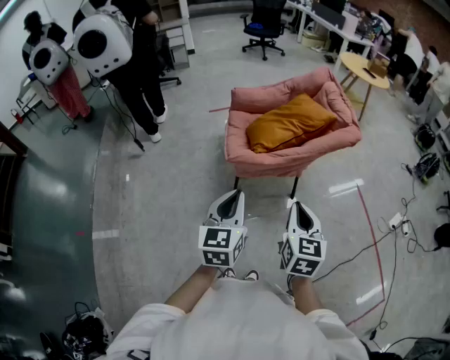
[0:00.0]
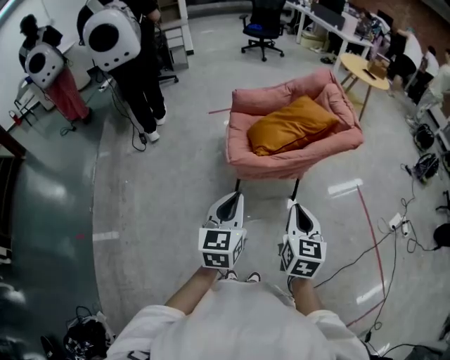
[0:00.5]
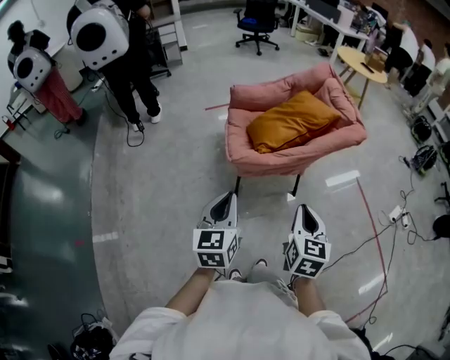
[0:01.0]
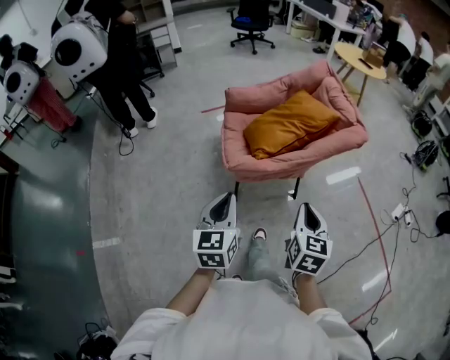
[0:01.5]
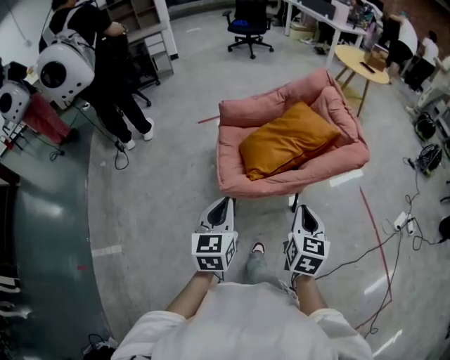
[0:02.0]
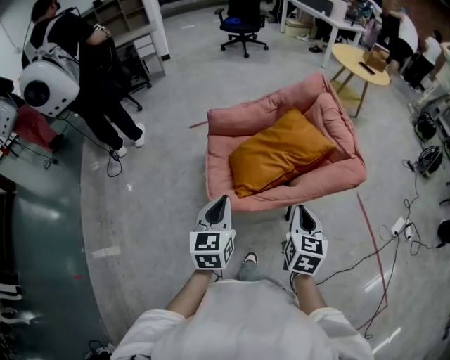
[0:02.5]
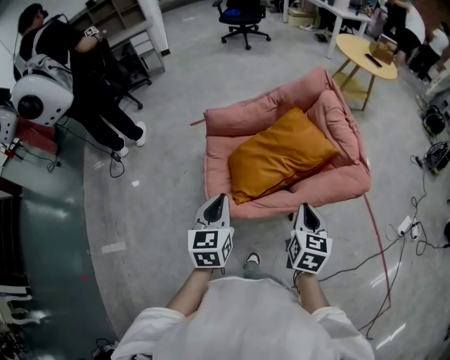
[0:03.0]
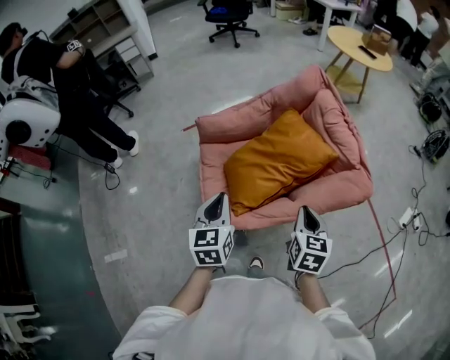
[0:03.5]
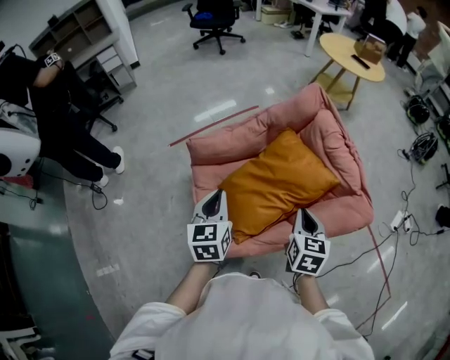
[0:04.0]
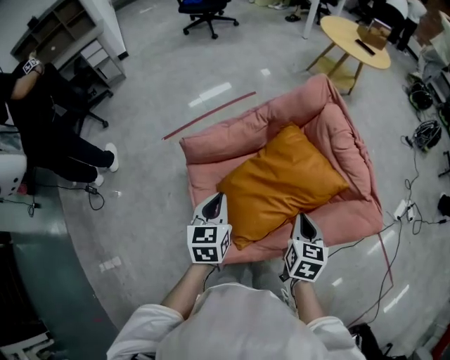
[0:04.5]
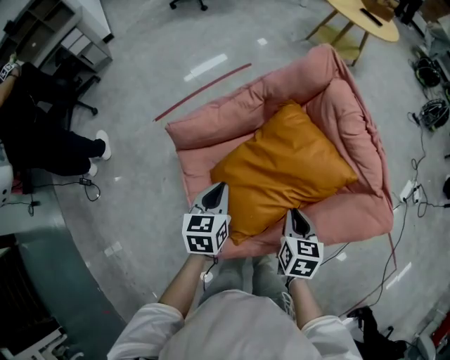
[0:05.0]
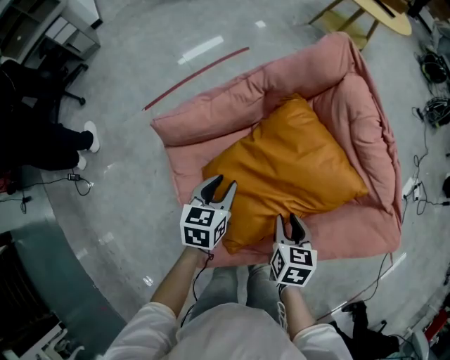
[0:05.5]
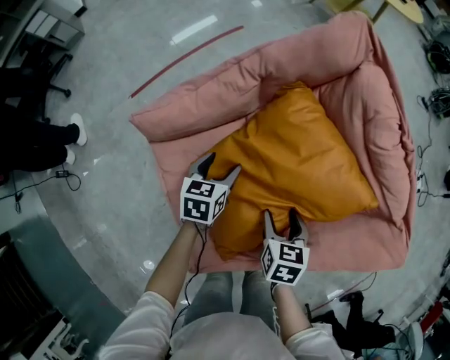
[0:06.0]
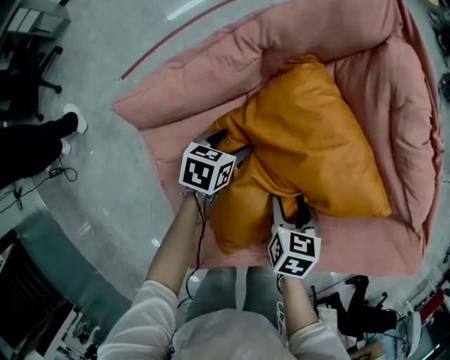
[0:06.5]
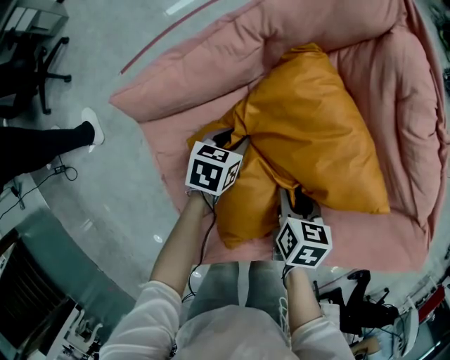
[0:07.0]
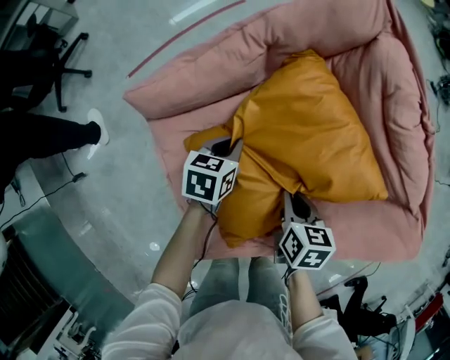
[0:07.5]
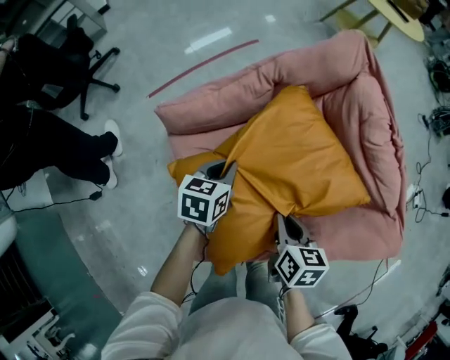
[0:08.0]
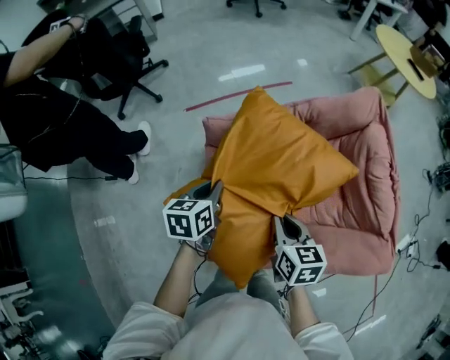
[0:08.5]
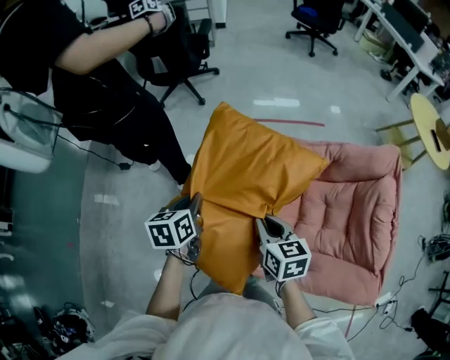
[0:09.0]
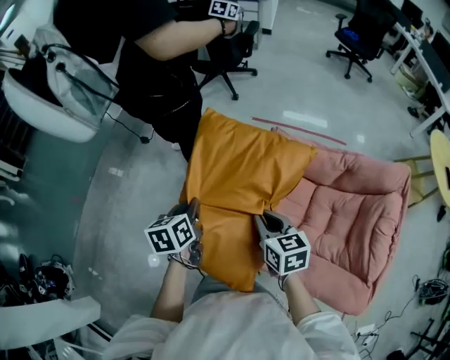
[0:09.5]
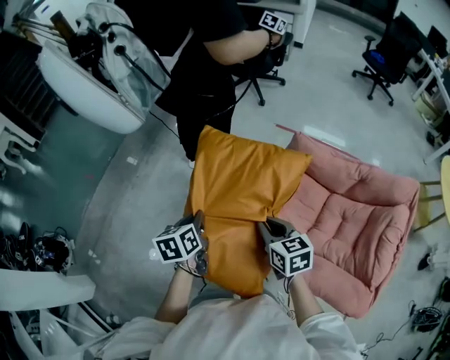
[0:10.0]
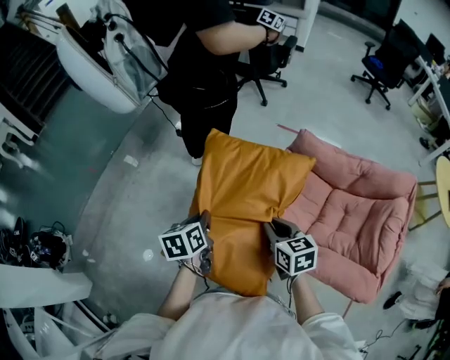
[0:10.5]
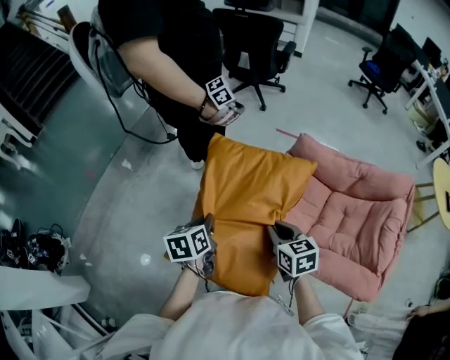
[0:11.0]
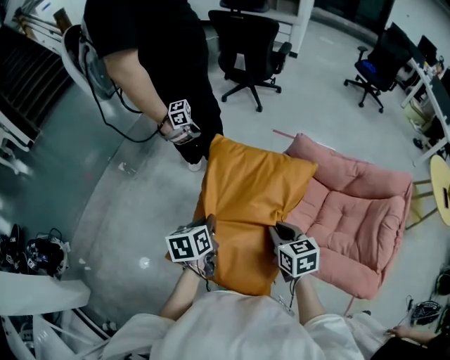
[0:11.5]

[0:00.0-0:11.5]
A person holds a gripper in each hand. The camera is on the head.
0:00.0 to 0:02.0: The two grippers go roughly 20 cm forward.
0:02.0 to 0:04.0: The two grippers go some 35 cm forward.
0:04.0 to 0:06.0: The left gripper heads downward and forward, covering roughly 35 cm, turns by roughly 40 degrees, and opens, while the right gripper shifts some 25 cm downward, turns by about 30 degrees, and opens up.
0:06.0 to 0:07.5: The right gripper closes up; the left gripper closes up.
0:07.5 to 0:09.5: The left gripper changes place by approximately 50 cm, and swivels some 80 degrees; the right gripper changes place by roughly 35 cm, and turns by some 70 degrees.
0:09.5 to 0:11.5: Both grippers travel together backward and to the left, some 15 cm.

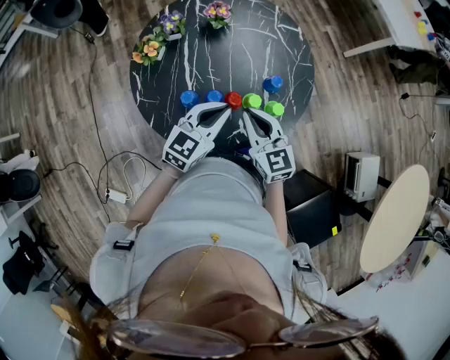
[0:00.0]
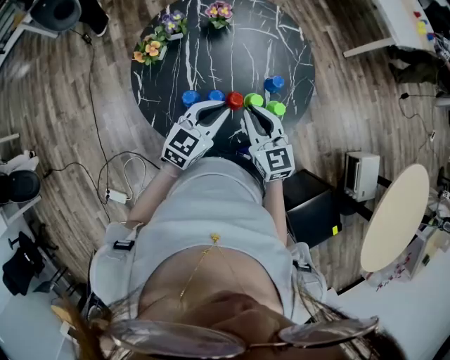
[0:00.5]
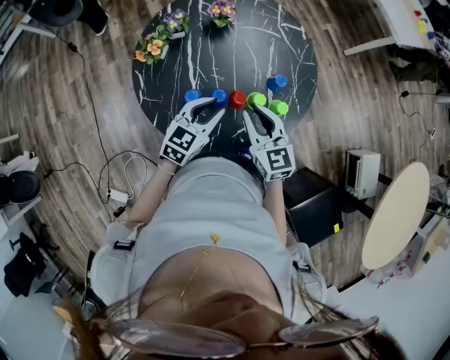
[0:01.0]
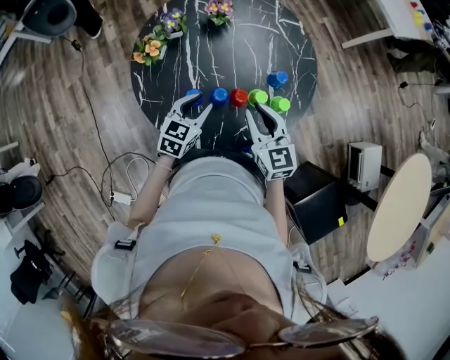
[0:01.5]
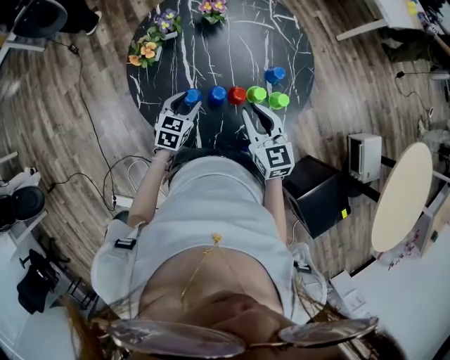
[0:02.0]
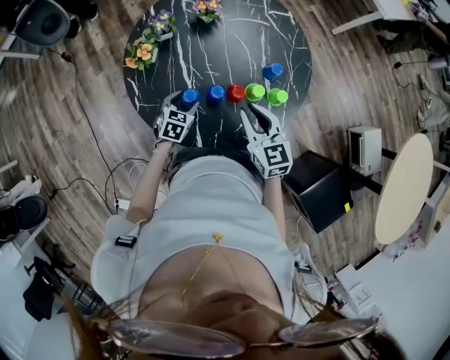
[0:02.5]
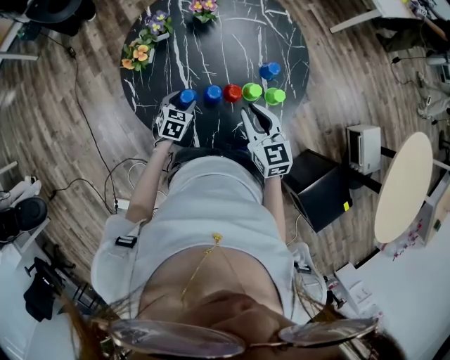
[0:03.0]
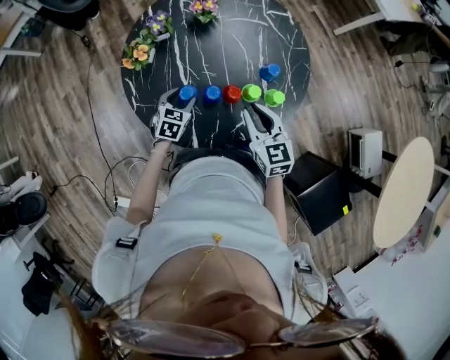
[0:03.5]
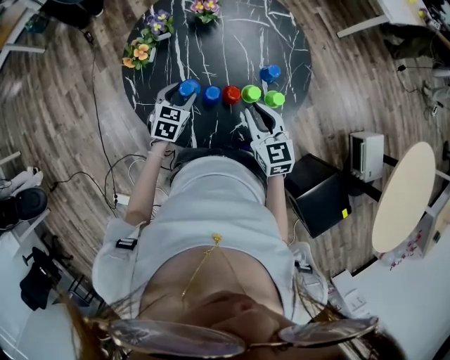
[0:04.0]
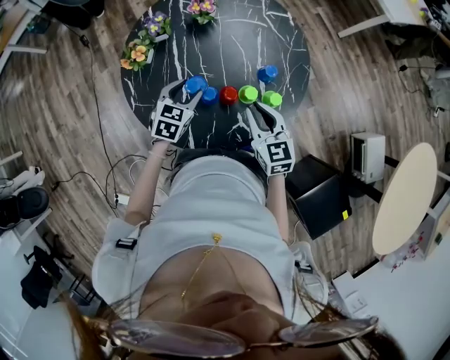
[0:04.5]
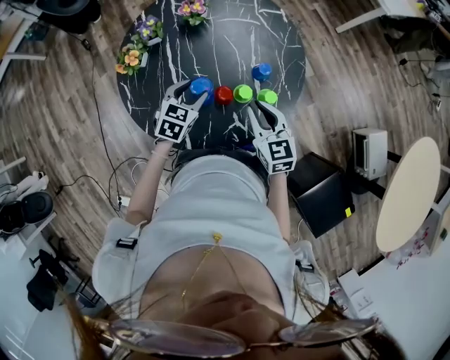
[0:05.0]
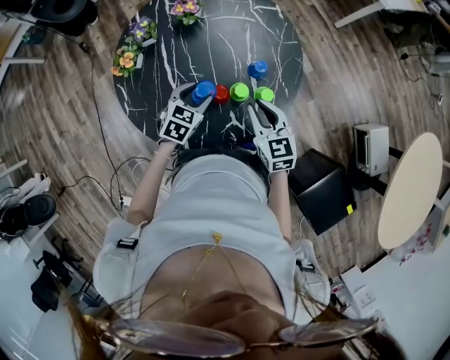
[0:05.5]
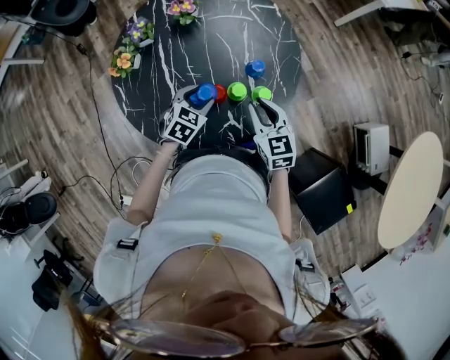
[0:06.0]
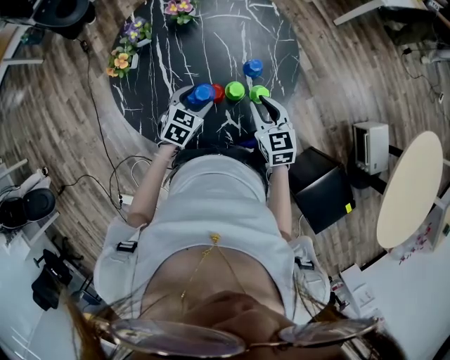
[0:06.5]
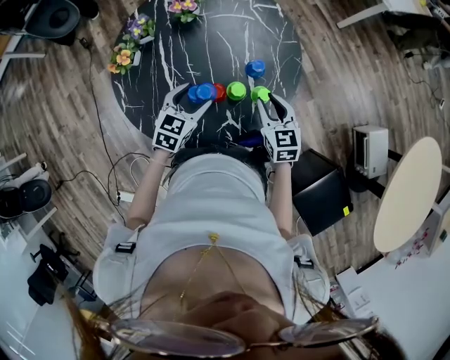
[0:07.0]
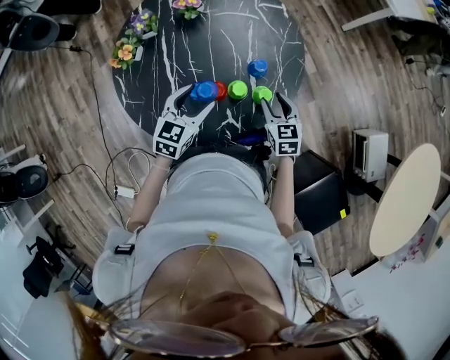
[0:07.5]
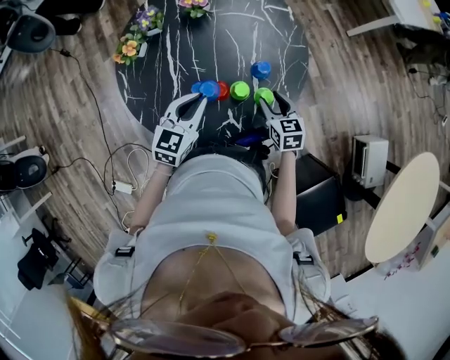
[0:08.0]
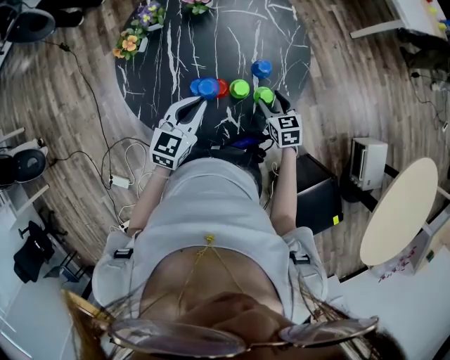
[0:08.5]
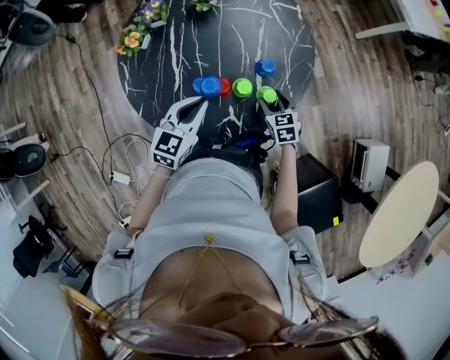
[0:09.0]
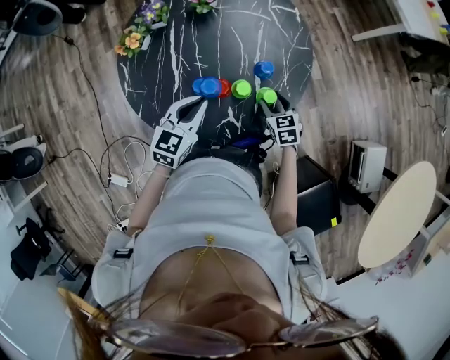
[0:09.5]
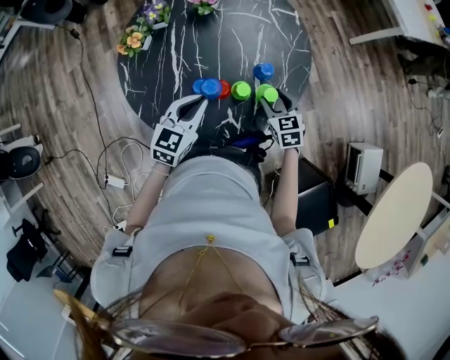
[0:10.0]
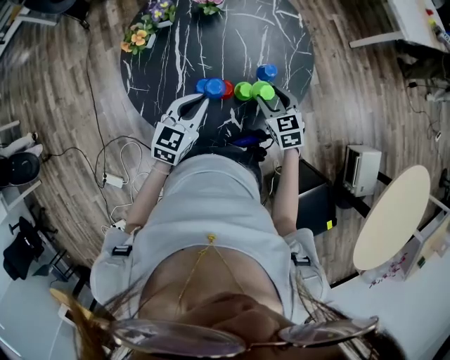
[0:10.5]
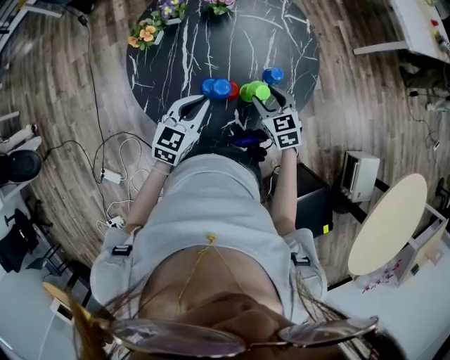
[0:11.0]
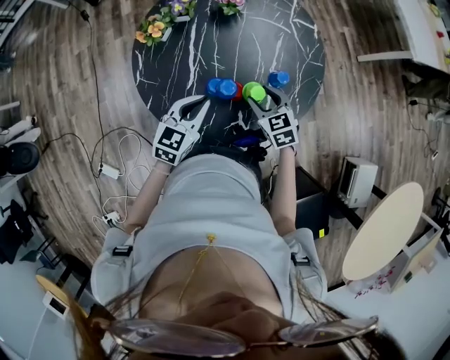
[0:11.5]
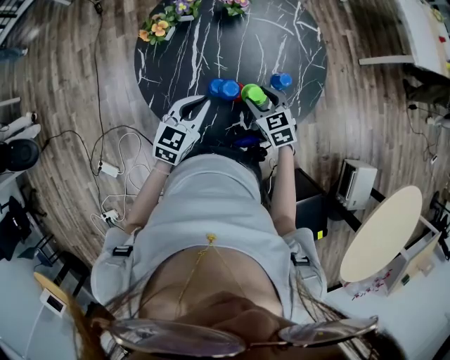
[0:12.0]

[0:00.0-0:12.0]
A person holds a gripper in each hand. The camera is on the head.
0:00.0 to 0:02.0: The left gripper is displaced downward and to the left by some 20 cm, changes its angle by approximately 20 degrees, and opens up.
0:04.0 to 0:06.0: The left gripper heads to the right, covering some 10 cm, while the right gripper heads to the right, covering roughly 5 cm.
0:06.0 to 0:08.0: The left gripper moves upward, approximately 10 cm, rotates about 30 degrees, and closes; the right gripper is displaced downward by about 10 cm, and opens up.
0:10.0 to 0:12.0: The left gripper goes some 5 cm to the left. Meanwhile the right gripper travels to the left by approximately 10 cm.

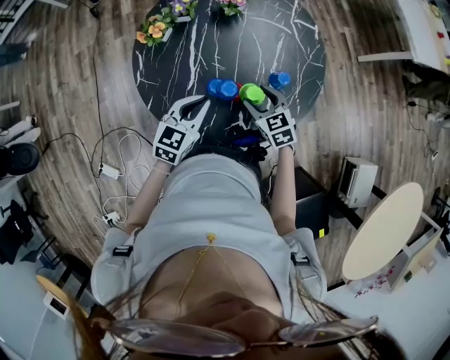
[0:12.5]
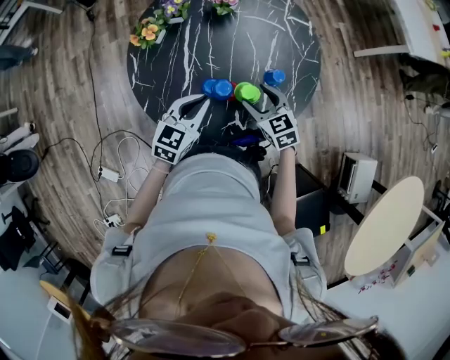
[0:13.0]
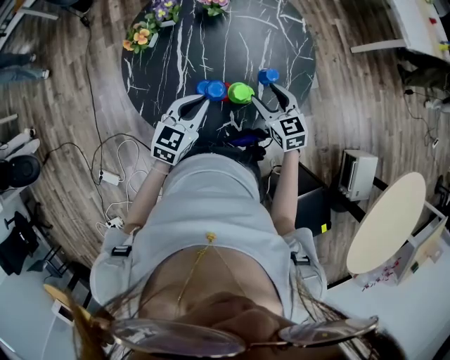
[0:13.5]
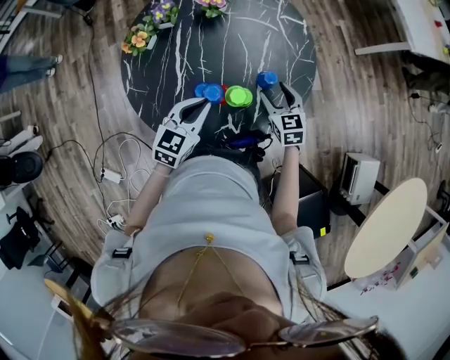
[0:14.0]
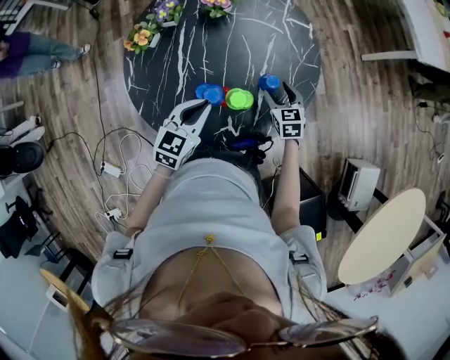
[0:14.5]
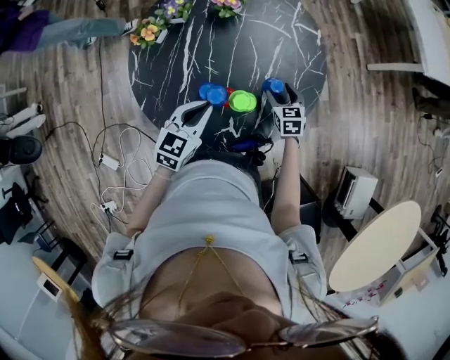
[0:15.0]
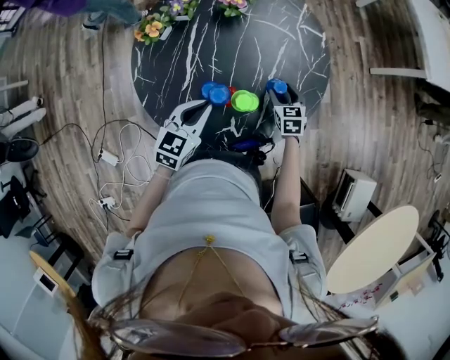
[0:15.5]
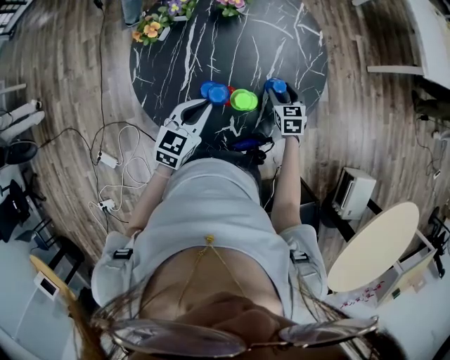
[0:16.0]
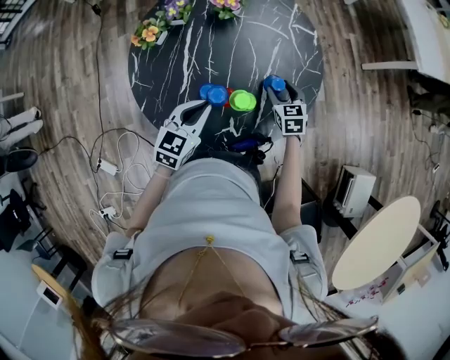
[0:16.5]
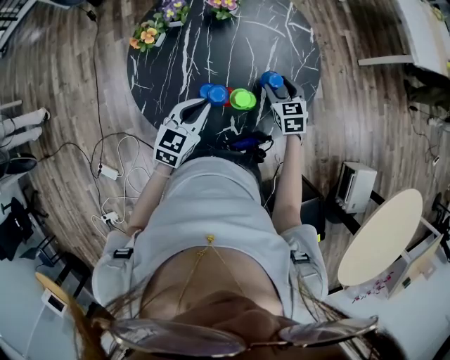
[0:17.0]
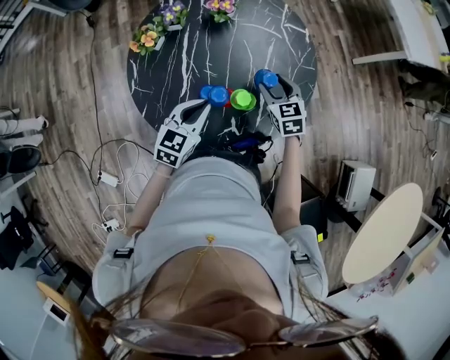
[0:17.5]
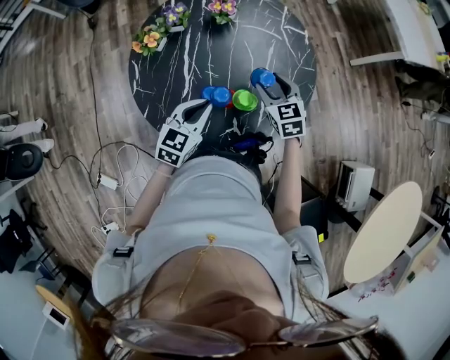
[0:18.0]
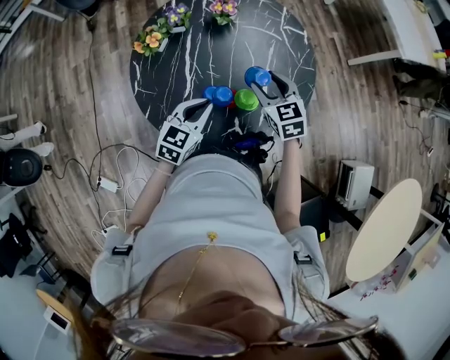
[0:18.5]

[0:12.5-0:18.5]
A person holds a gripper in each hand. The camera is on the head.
0:12.5 to 0:14.5: The left gripper is displaced to the right by some 5 cm. Meanwhile the right gripper moves to the right, forward and downward, about 15 cm.
0:14.5 to 0:16.5: There are only small adjustments of the grippers.
0:16.5 to 0:18.5: The right gripper goes roughly 15 cm upward and to the left.
